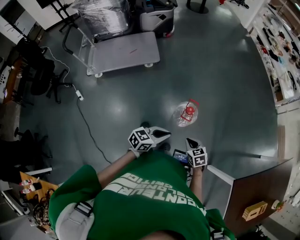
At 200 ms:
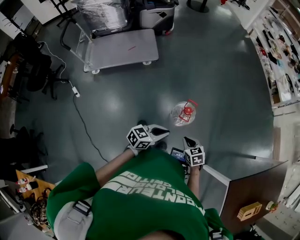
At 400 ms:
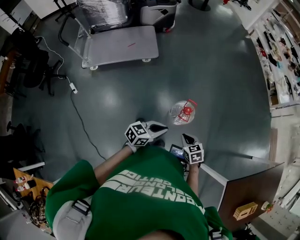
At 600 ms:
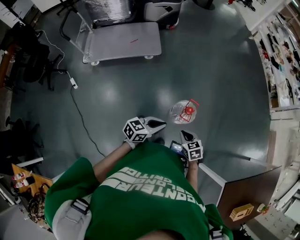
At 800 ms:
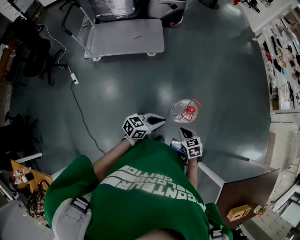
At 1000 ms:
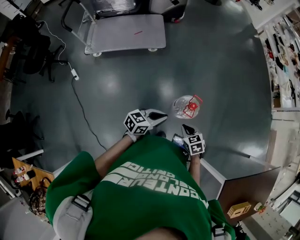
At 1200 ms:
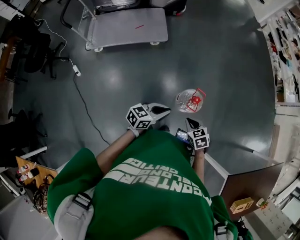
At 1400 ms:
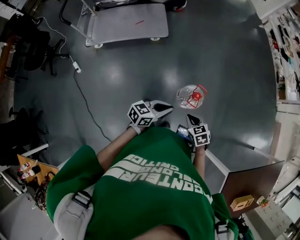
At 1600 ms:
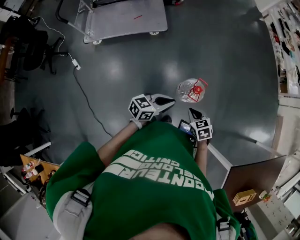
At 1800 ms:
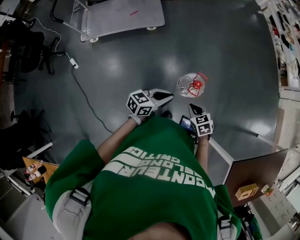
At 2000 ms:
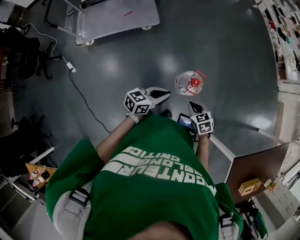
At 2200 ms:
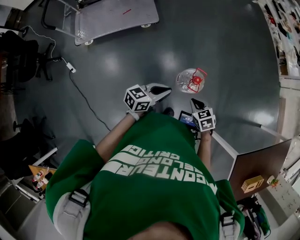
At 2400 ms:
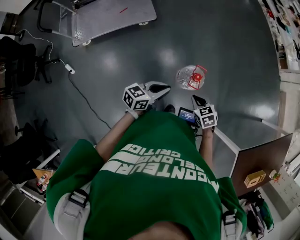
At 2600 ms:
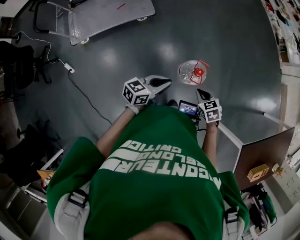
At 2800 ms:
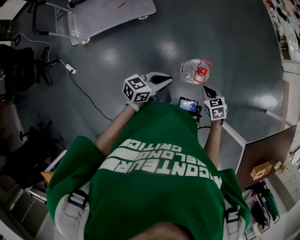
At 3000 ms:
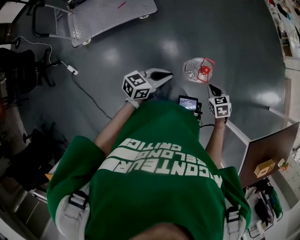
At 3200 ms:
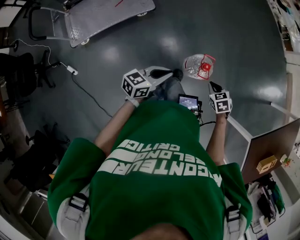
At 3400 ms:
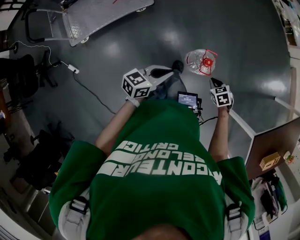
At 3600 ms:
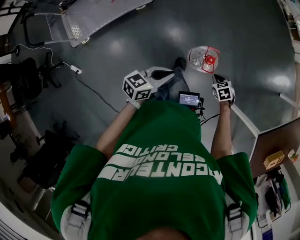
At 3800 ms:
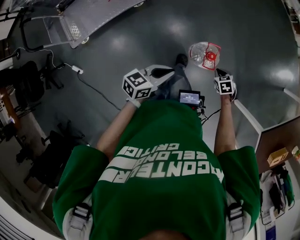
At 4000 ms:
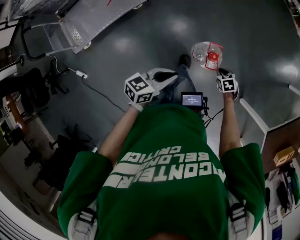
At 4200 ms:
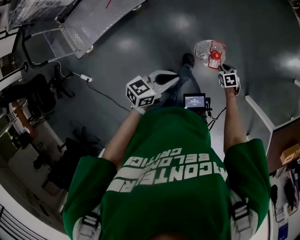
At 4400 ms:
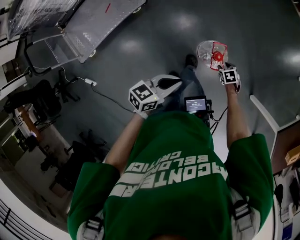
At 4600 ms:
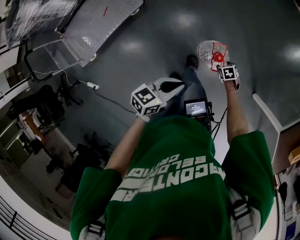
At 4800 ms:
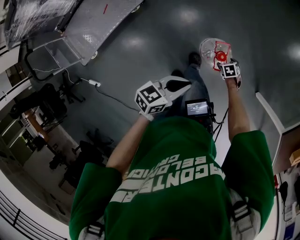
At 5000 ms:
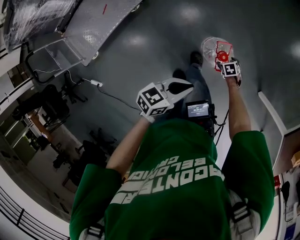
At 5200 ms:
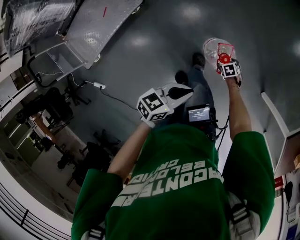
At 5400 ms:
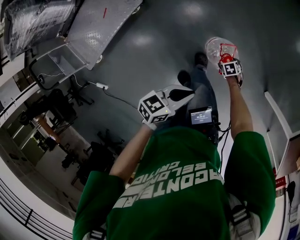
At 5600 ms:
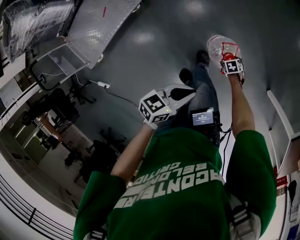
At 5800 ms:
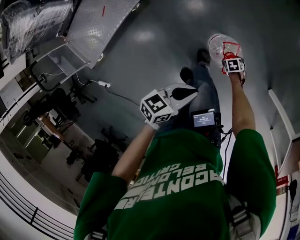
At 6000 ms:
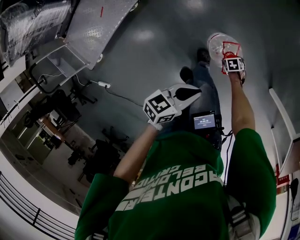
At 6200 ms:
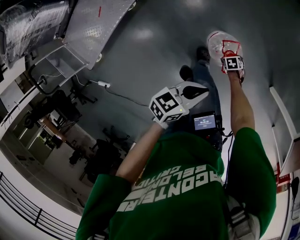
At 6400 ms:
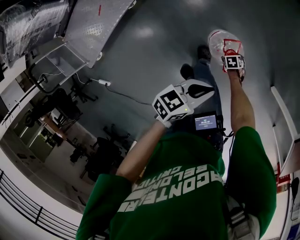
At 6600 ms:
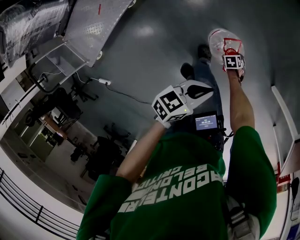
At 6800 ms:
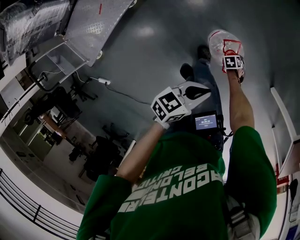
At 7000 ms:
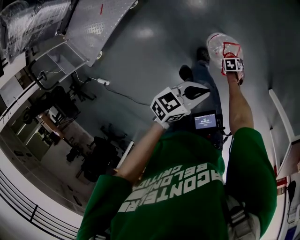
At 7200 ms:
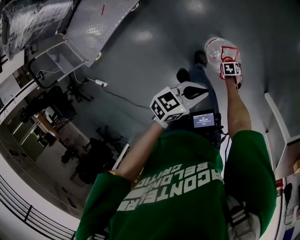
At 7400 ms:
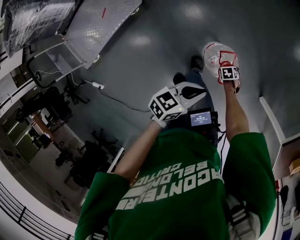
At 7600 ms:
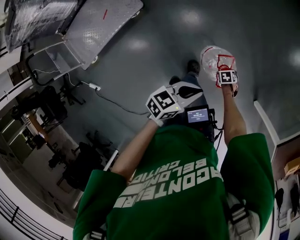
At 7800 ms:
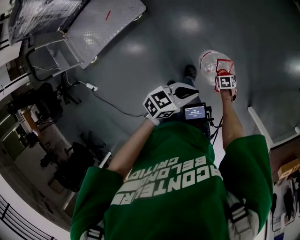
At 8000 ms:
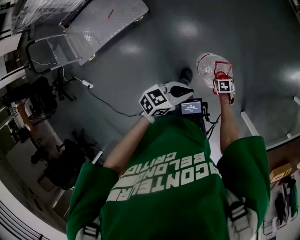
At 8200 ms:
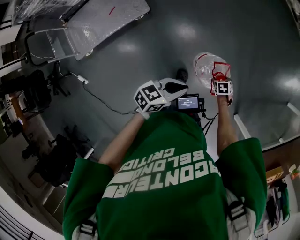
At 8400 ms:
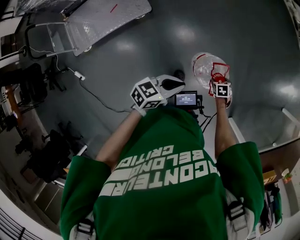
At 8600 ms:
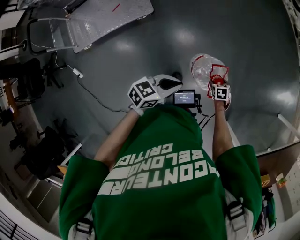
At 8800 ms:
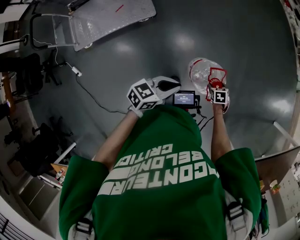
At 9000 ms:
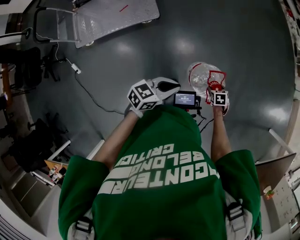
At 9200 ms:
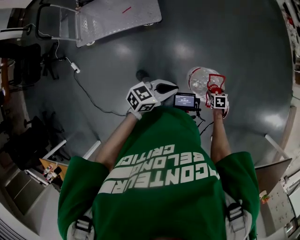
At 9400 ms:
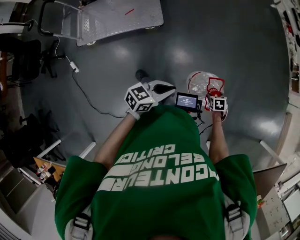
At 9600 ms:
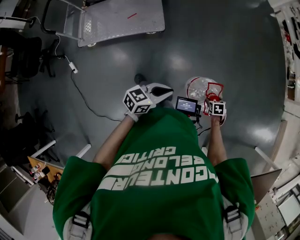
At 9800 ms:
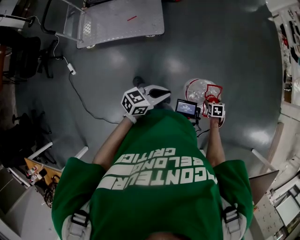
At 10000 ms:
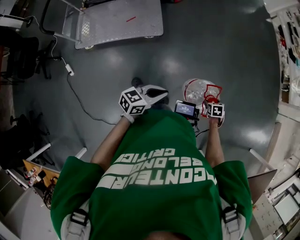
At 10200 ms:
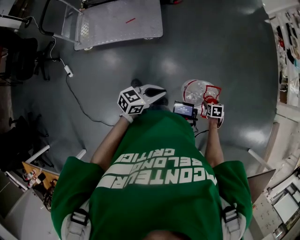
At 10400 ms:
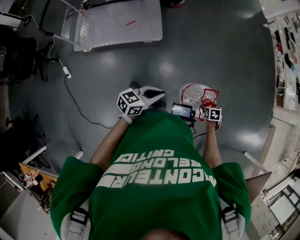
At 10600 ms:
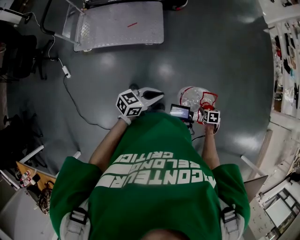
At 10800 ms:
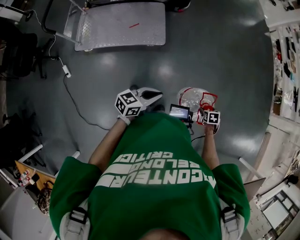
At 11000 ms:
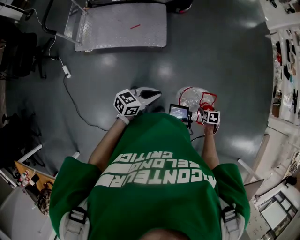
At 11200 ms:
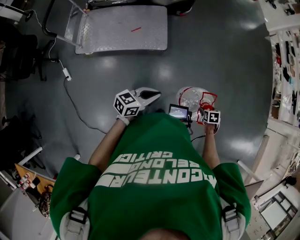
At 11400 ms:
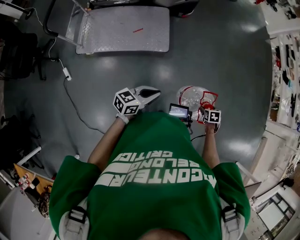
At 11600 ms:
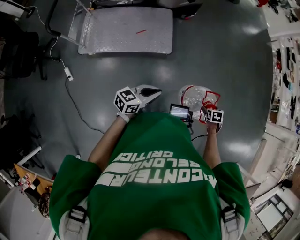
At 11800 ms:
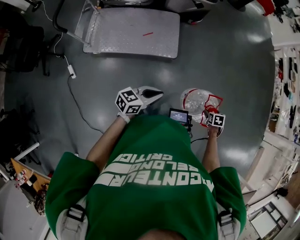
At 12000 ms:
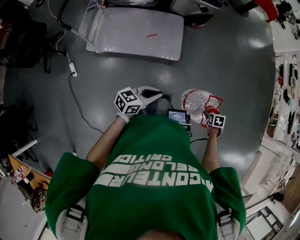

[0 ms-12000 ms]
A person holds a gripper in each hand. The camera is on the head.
0 ms to 1600 ms: The right gripper is displaced to the left and forward by some 10 cm; the left gripper is displaced forward and to the left by approximately 10 cm.
1600 ms to 3000 ms: The right gripper goes about 10 cm forward, while the left gripper heads to the left and forward, covering approximately 15 cm.
3000 ms to 4400 ms: The right gripper travels downward by roughly 25 cm, turns by some 20 degrees, and opens up. Meanwhile the left gripper changes place by some 10 cm.
4400 ms to 6000 ms: The right gripper is displaced downward by roughly 15 cm, and opens its fingers. Meanwhile the left gripper changes place by about 10 cm.
6000 ms to 7600 ms: The left gripper shifts by roughly 5 cm, while the right gripper moves upward, roughly 5 cm.
7600 ms to 9000 ms: The right gripper travels upward by about 15 cm, and swivels about 20 degrees. The left gripper moves about 10 cm, and swivels some 20 degrees.
9000 ms to 10400 ms: The left gripper ends up roughly 15 cm from where it was. Meanwhile the right gripper goes roughly 5 cm upward.
10400 ms to 12000 ms: The right gripper changes place by about 20 cm. The left gripper changes place by roughly 25 cm.

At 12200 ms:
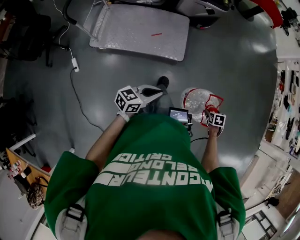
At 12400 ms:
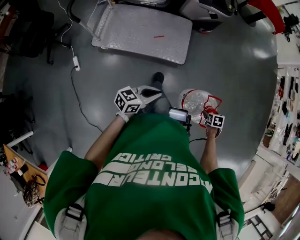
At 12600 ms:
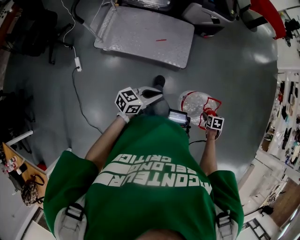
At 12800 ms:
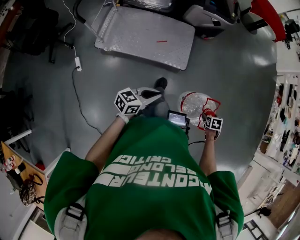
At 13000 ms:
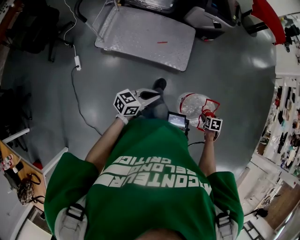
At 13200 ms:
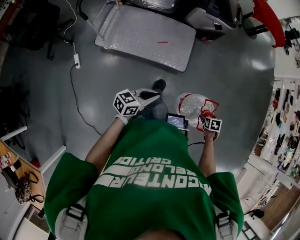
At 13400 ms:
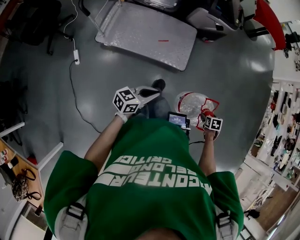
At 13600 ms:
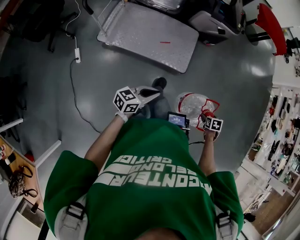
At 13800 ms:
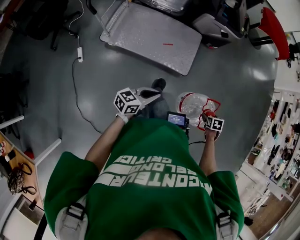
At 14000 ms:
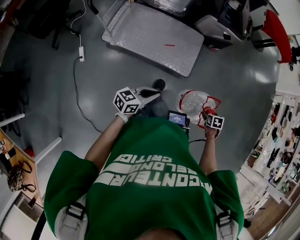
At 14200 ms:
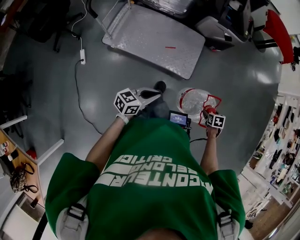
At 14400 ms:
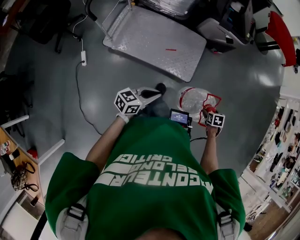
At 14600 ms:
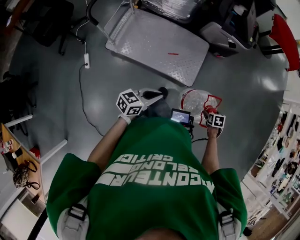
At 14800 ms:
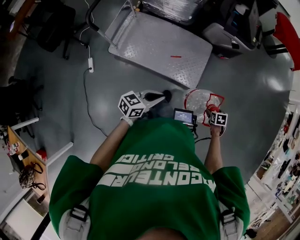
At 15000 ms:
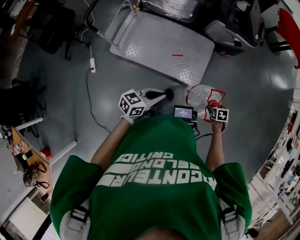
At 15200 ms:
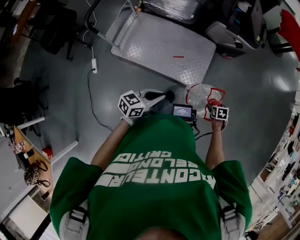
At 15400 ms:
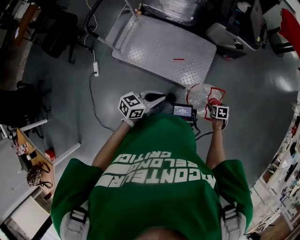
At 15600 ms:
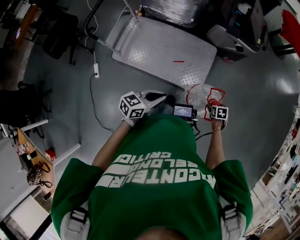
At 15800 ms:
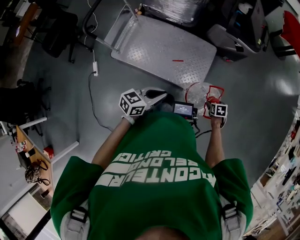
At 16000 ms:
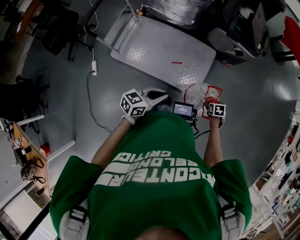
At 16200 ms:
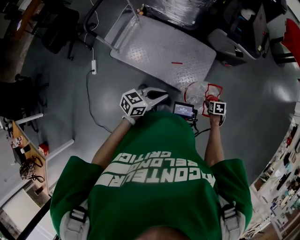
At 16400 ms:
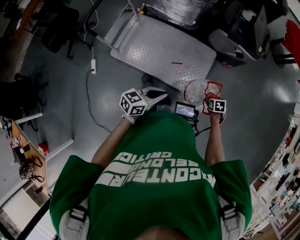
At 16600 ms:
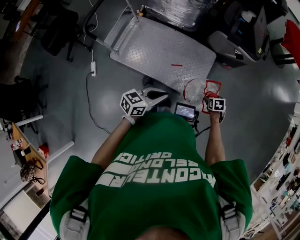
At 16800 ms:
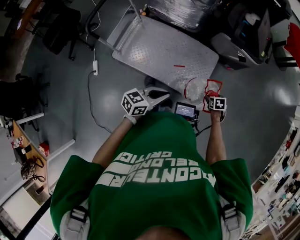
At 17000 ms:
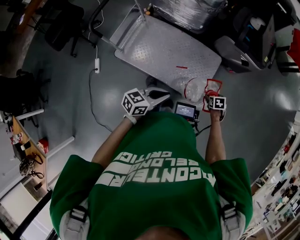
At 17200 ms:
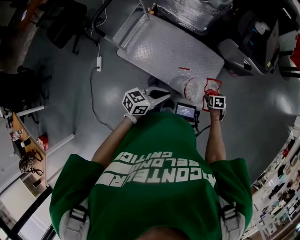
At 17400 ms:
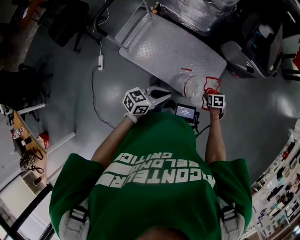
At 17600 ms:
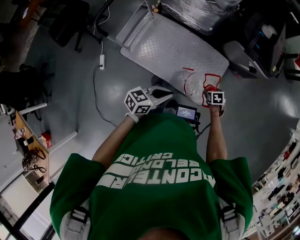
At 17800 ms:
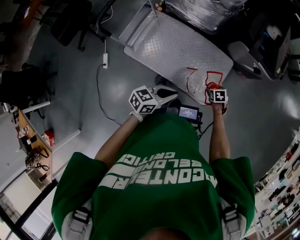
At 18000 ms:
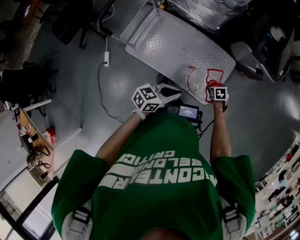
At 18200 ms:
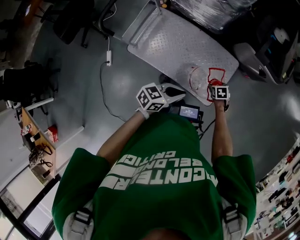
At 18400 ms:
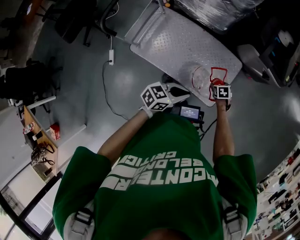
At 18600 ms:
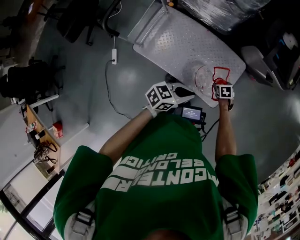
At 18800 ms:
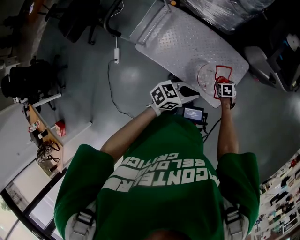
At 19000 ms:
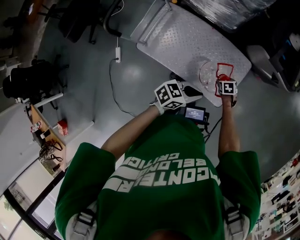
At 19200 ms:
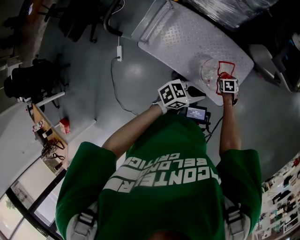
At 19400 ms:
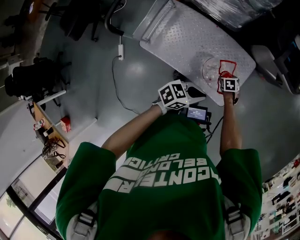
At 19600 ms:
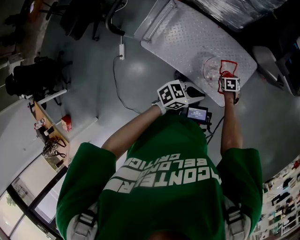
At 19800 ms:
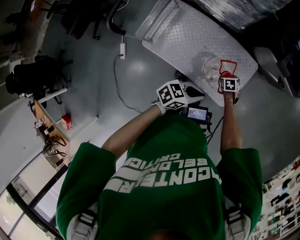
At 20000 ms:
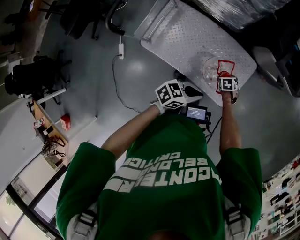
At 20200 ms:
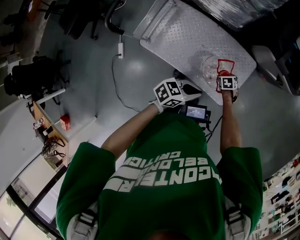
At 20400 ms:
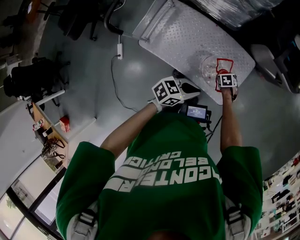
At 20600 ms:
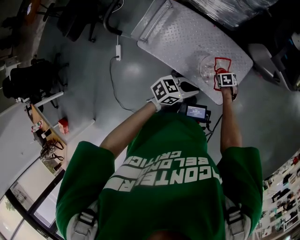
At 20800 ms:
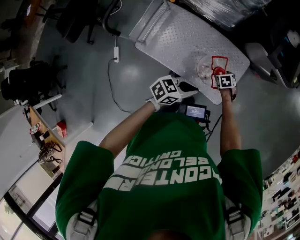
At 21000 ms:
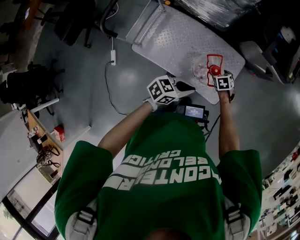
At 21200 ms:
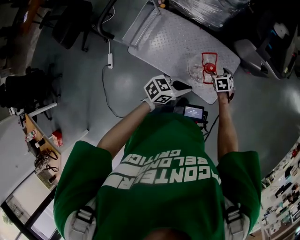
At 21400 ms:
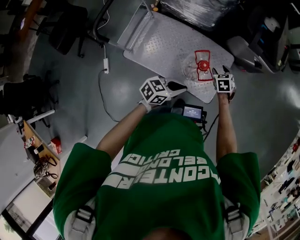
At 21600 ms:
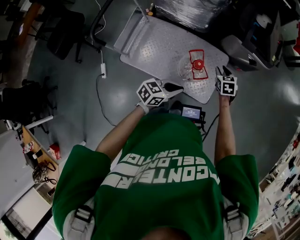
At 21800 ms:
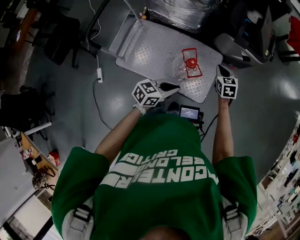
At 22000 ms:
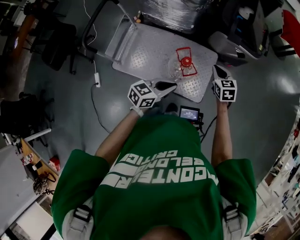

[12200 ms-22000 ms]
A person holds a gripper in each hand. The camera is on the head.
12200 ms to 13600 ms: The right gripper changes place by roughly 10 cm. Meanwhile the left gripper moves some 10 cm.
13600 ms to 15000 ms: The right gripper ends up approximately 25 cm from where it was; the left gripper shifts by about 15 cm.
15000 ms to 16400 ms: The right gripper moves about 15 cm. The left gripper shifts by roughly 10 cm.
16400 ms to 17800 ms: The right gripper heads to the left and forward, covering about 20 cm; the left gripper shifts approximately 10 cm forward and to the left.
17800 ms to 19200 ms: The right gripper moves some 15 cm, while the left gripper moves approximately 10 cm.
19200 ms to 20600 ms: The grippers stay close to where they were, moving slightly.
20600 ms to 22000 ms: The right gripper travels upward by roughly 30 cm, points its fingers roughly 40 degrees further upward, and closes. Meanwhile the left gripper shifts by roughly 15 cm.

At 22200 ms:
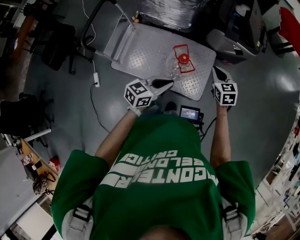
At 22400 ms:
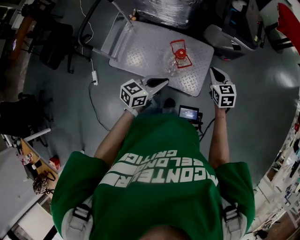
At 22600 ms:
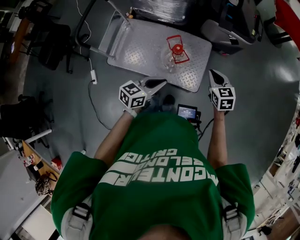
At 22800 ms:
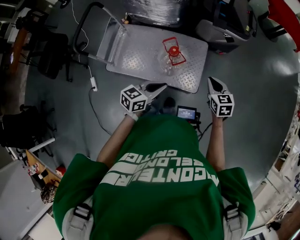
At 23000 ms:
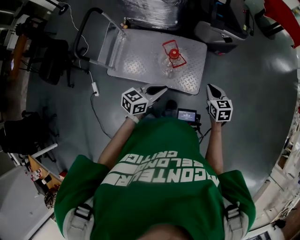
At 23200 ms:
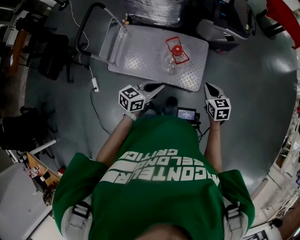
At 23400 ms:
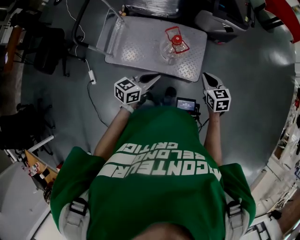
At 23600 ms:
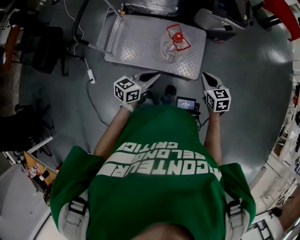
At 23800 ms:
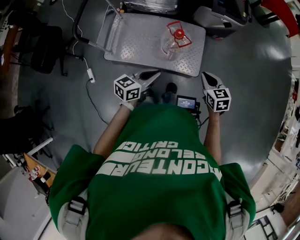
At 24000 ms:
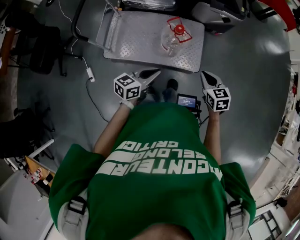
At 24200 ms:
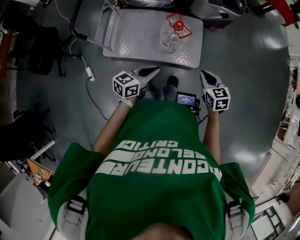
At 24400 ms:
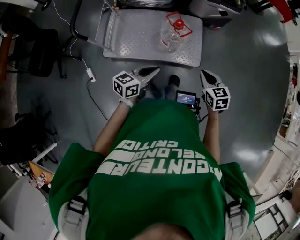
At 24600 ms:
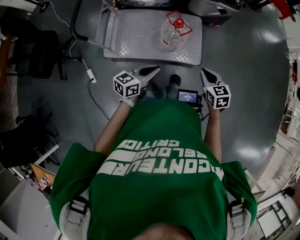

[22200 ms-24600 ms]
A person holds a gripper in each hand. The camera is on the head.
22200 ms to 23400 ms: The right gripper is displaced backward by approximately 15 cm. Meanwhile the left gripper is displaced backward by some 10 cm.
23400 ms to 24600 ms: The grippers both shift backward by approximately 10 cm.
